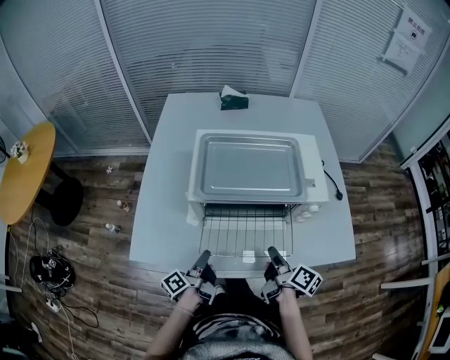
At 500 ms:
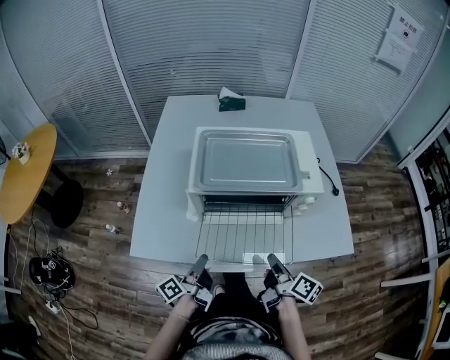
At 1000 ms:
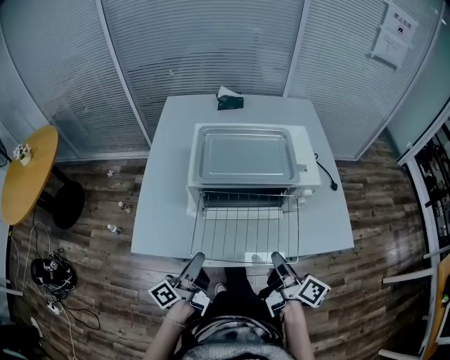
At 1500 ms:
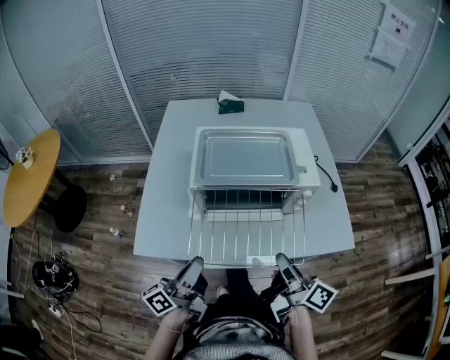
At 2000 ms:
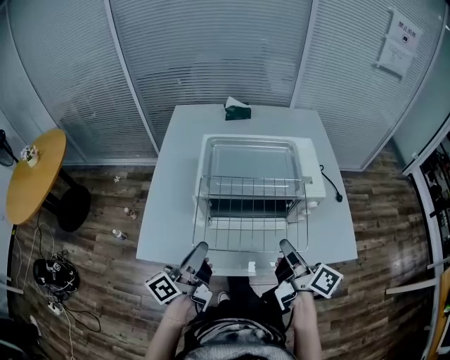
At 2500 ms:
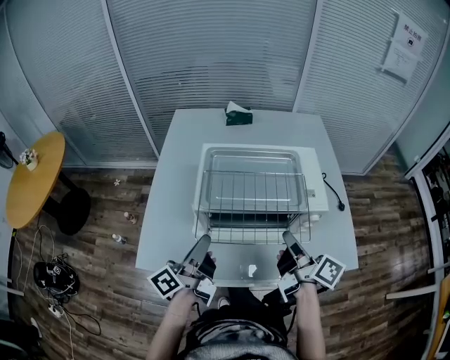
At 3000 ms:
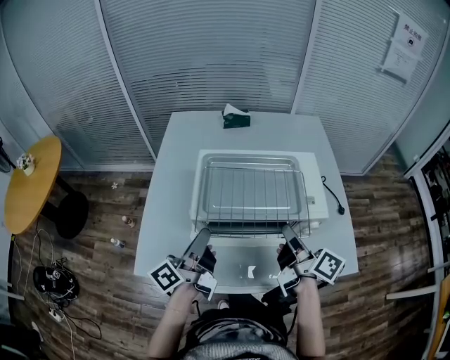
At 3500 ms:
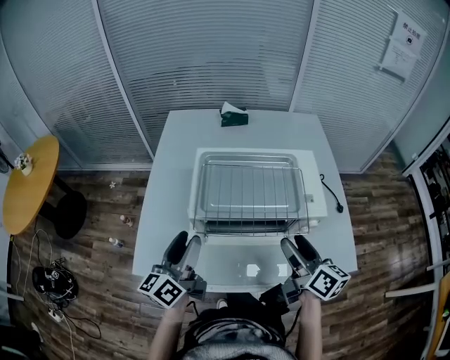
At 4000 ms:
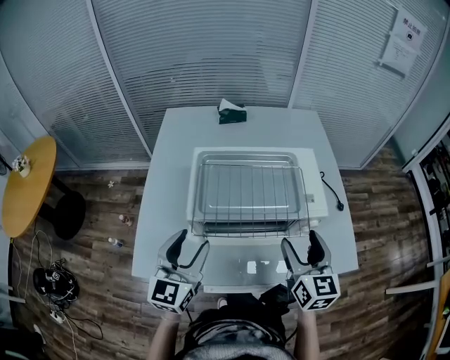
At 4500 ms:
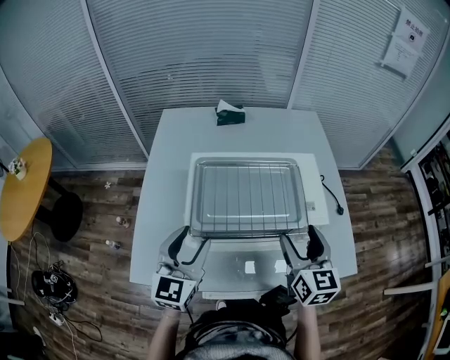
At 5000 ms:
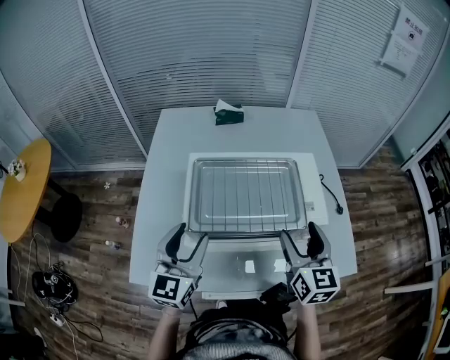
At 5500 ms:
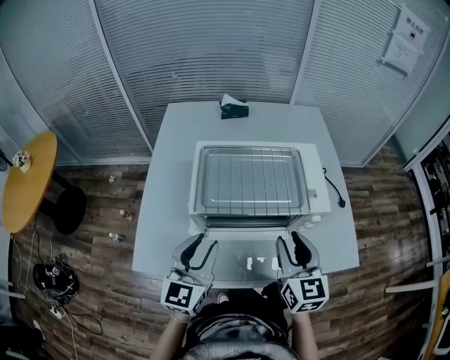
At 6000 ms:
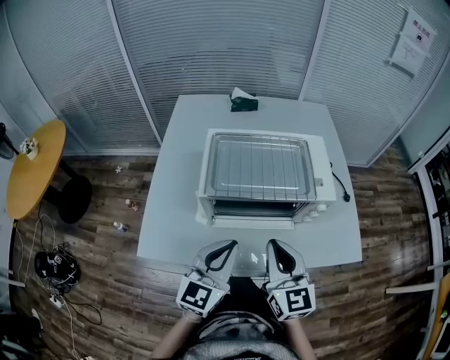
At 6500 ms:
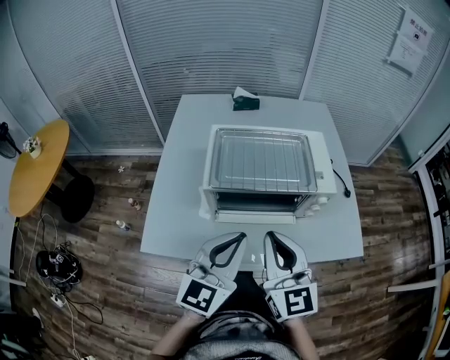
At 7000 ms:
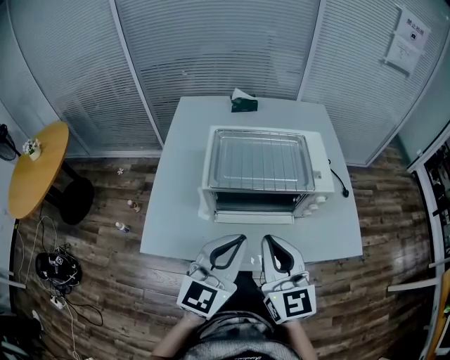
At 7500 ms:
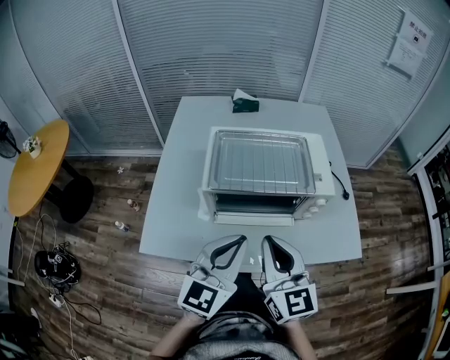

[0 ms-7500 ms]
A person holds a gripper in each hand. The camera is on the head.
0 ms to 2000 ms: Both grippers move upward, approximately 15 cm. The left gripper changes its angle by approximately 30 degrees.
2000 ms to 4000 ms: The two grippers go about 10 cm forward. The left gripper rotates around the line of its fingers by approximately 60 degrees, clockwise from behind, and opens up, while the right gripper rotates around the line of its fingers by roughly 50 degrees, counterclockwise from behind, and opens up.
4000 ms to 5500 ms: The right gripper closes up.
5500 ms to 7500 ms: The left gripper heads backward, to the right and upward, covering roughly 10 cm, and closes up, while the right gripper is displaced backward, to the left and upward by some 15 cm, and closes its fingers.

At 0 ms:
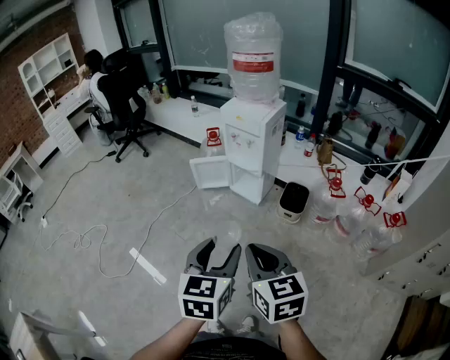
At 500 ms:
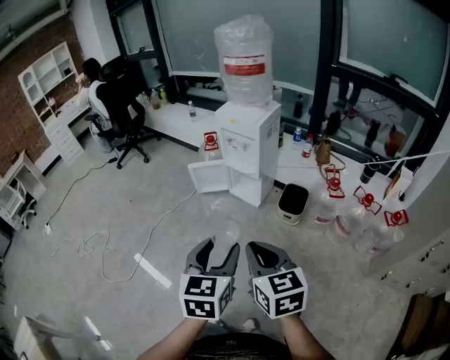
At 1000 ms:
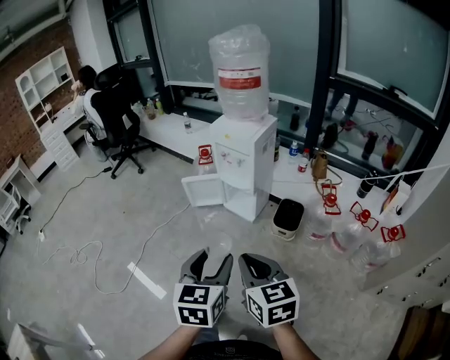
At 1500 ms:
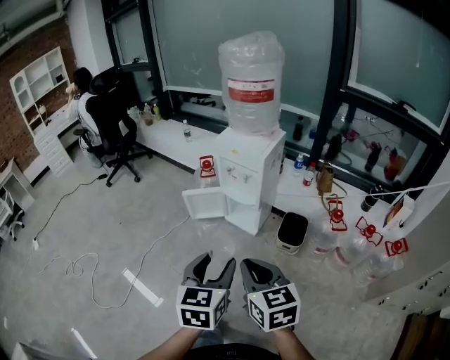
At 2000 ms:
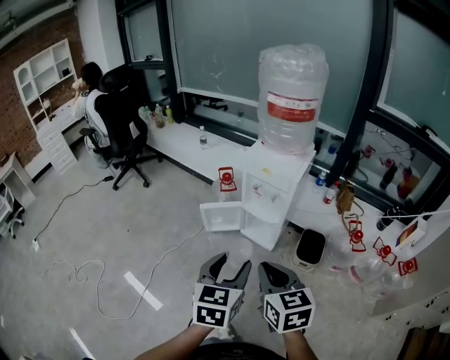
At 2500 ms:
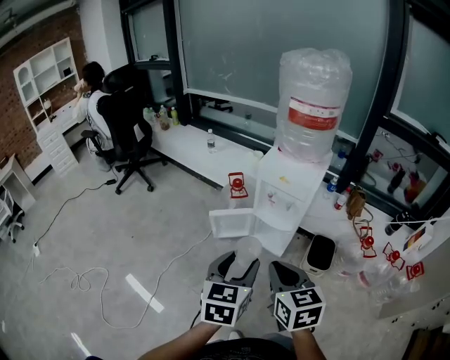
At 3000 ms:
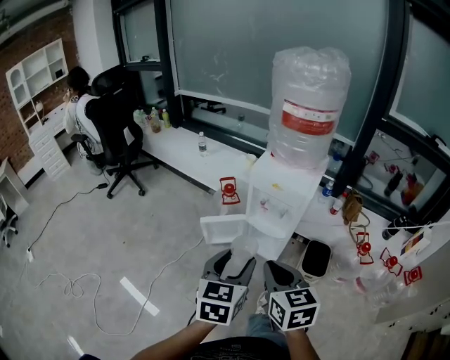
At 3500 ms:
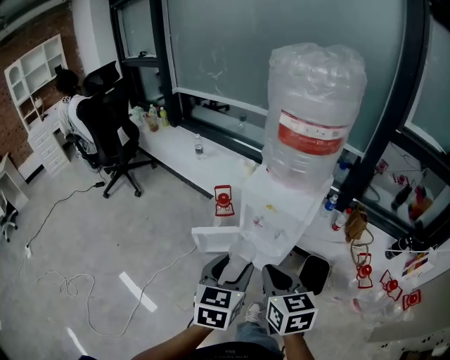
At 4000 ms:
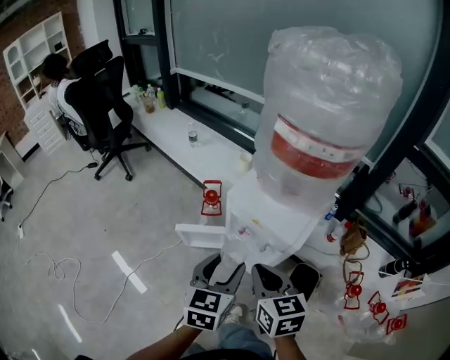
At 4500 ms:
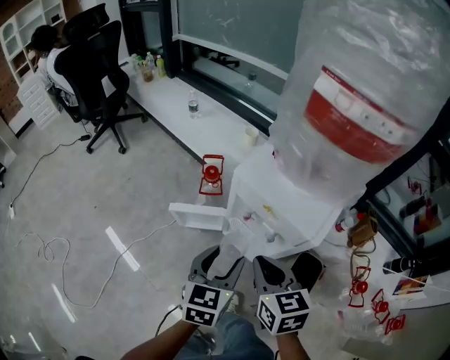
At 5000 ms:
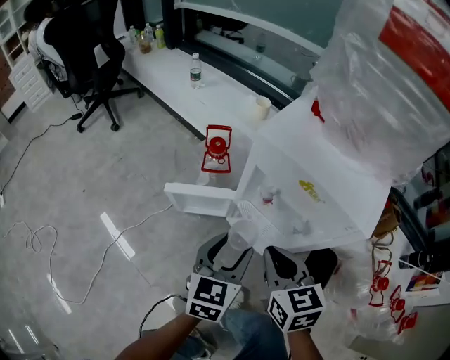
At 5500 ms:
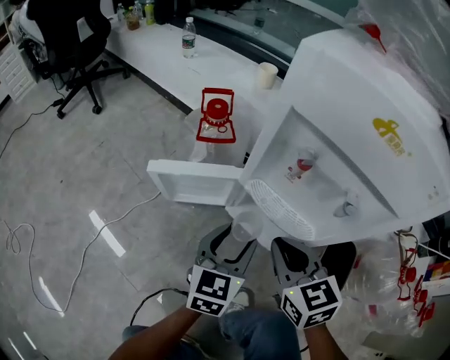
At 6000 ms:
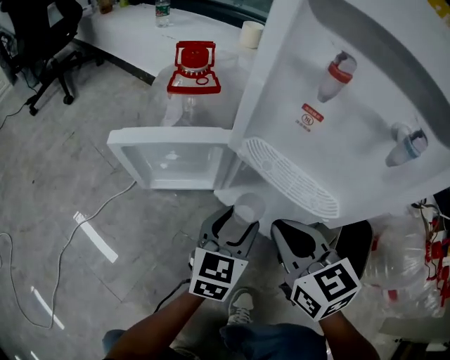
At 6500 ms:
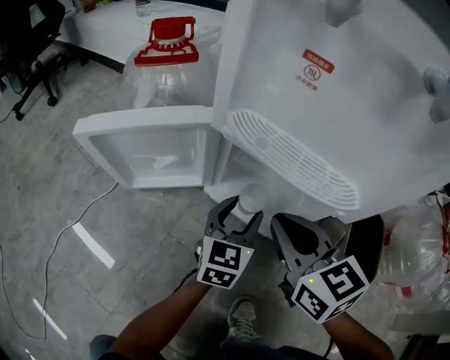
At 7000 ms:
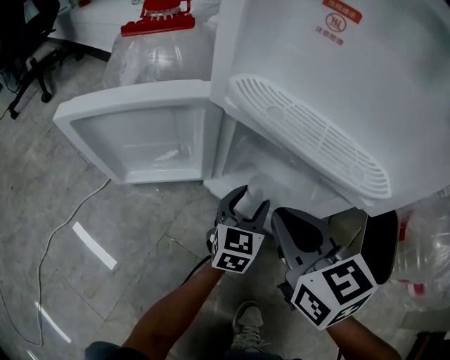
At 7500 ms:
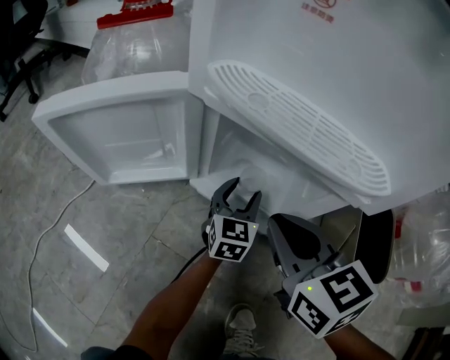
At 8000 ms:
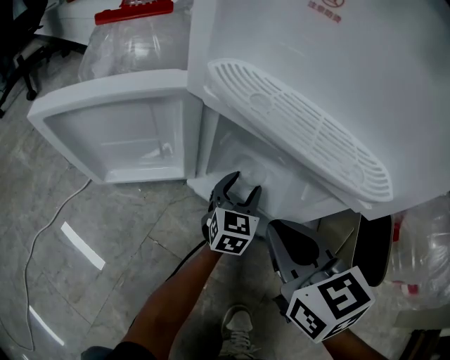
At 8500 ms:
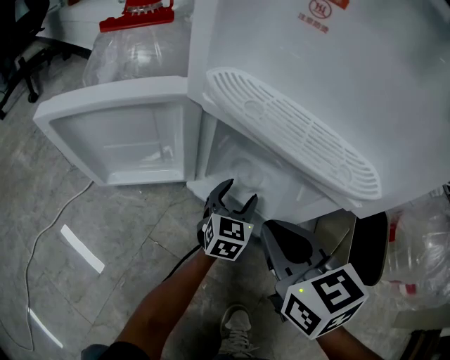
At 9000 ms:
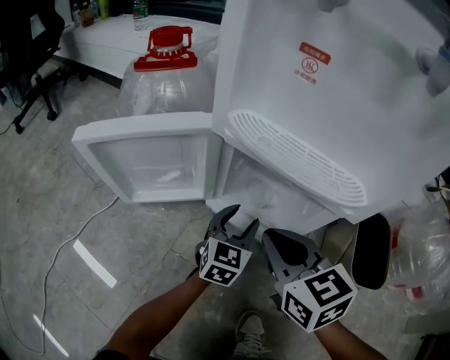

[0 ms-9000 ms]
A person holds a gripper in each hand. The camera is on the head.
0 ms to 2000 ms: The two grippers go about 25 cm forward.
2000 ms to 4500 ms: The two grippers go some 40 cm forward and downward.
4500 ms to 7000 ms: The grippers both shift downward by roughly 60 cm.

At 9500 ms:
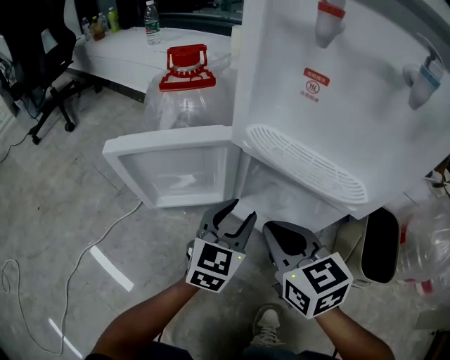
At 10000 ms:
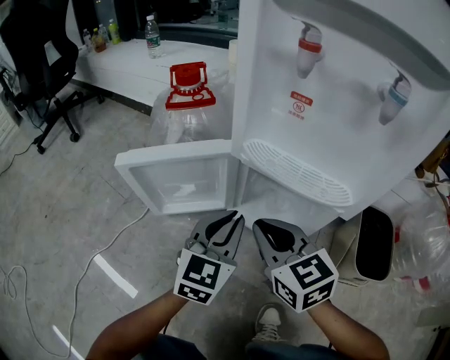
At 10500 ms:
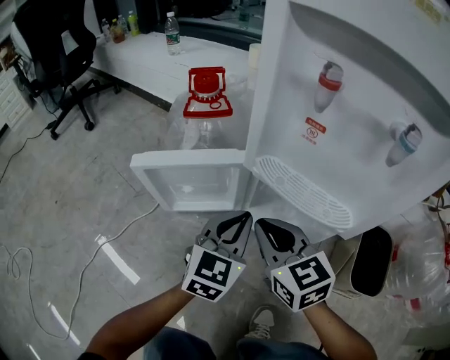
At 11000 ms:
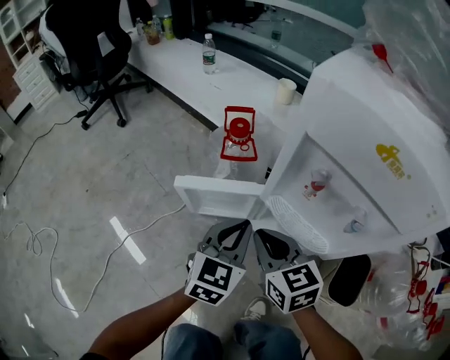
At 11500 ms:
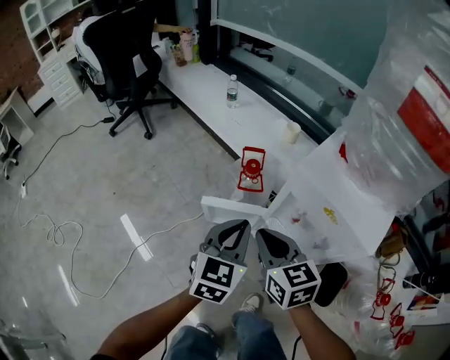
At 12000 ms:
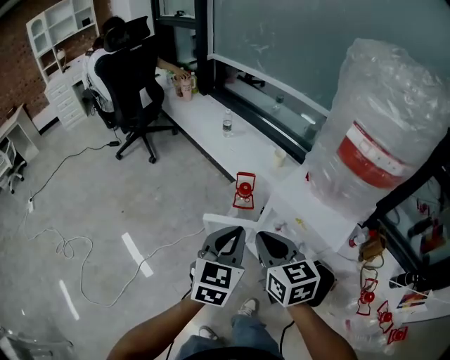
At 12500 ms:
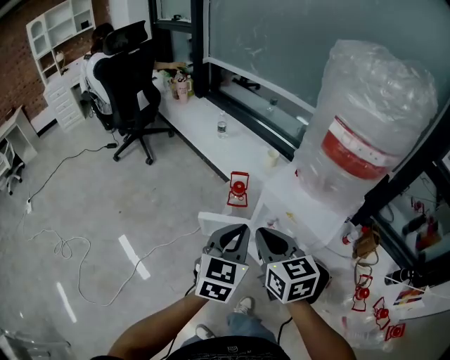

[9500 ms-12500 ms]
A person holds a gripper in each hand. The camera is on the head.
9500 ms to 11000 ms: The right gripper goes some 20 cm upward and to the left. Meanwhile the left gripper travels upward by some 25 cm, and closes.
11000 ms to 12500 ms: The grippers both shift upward by approximately 40 cm.

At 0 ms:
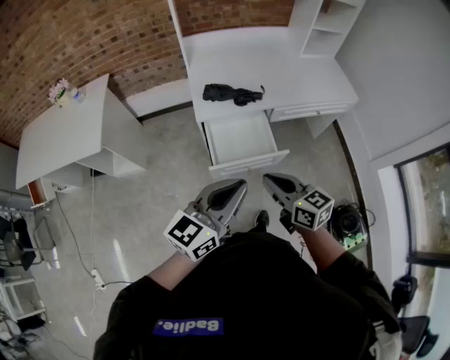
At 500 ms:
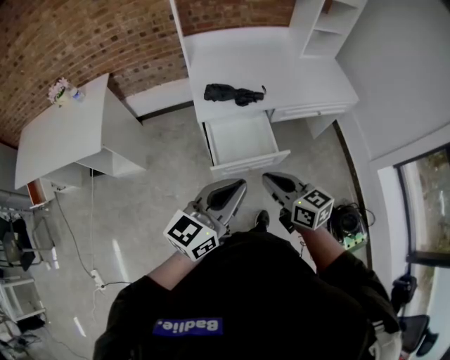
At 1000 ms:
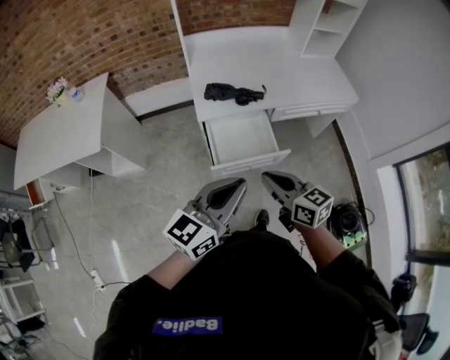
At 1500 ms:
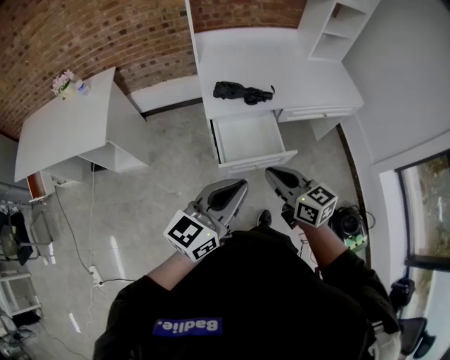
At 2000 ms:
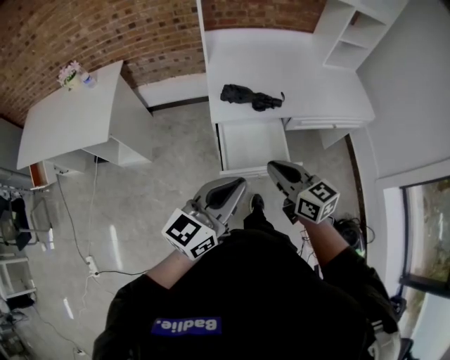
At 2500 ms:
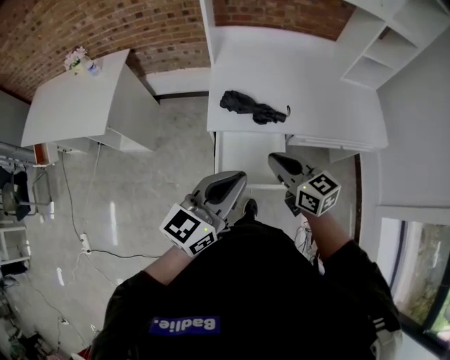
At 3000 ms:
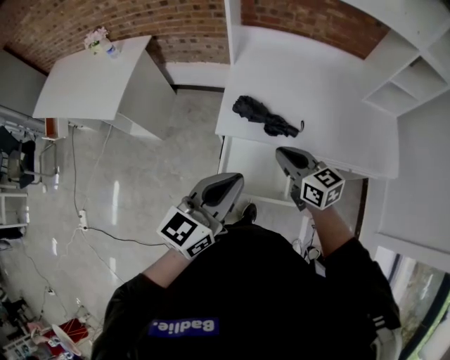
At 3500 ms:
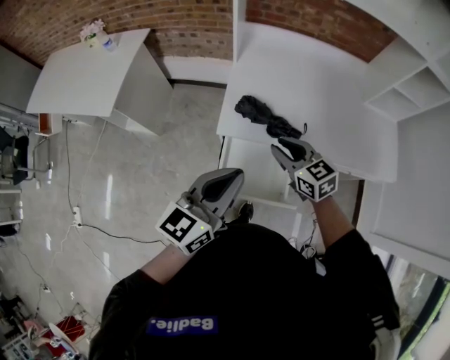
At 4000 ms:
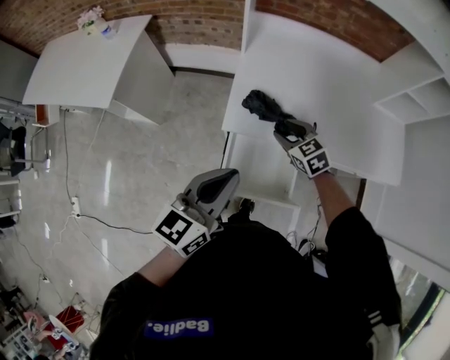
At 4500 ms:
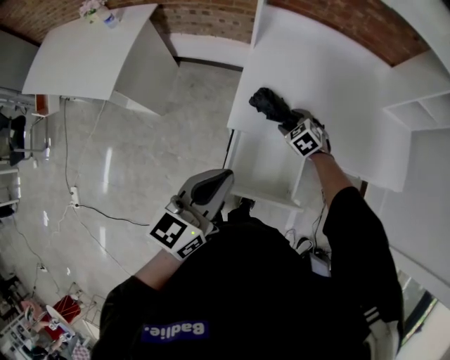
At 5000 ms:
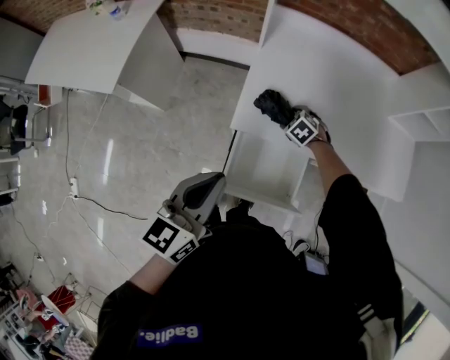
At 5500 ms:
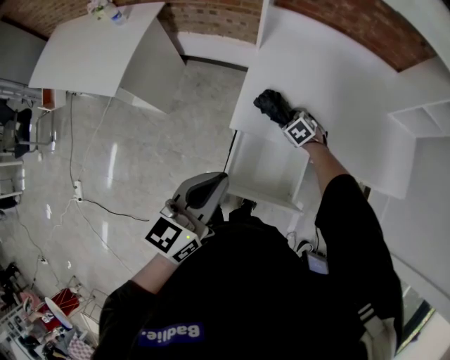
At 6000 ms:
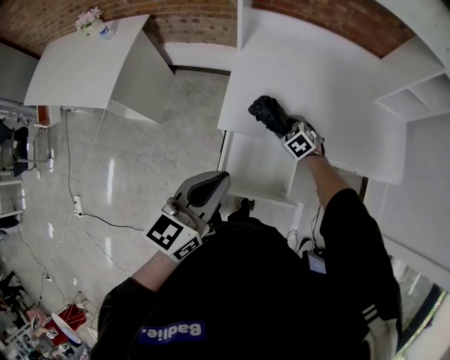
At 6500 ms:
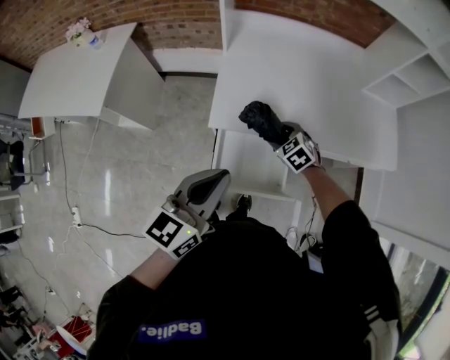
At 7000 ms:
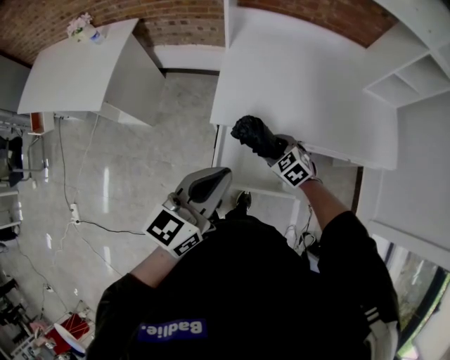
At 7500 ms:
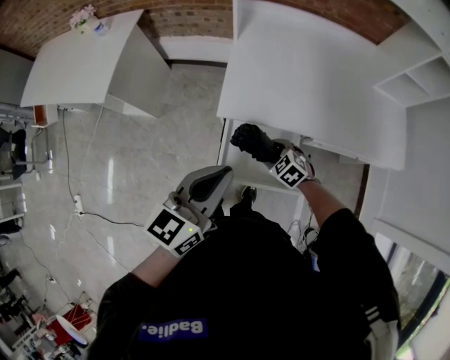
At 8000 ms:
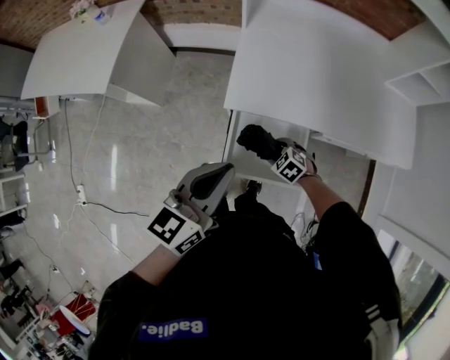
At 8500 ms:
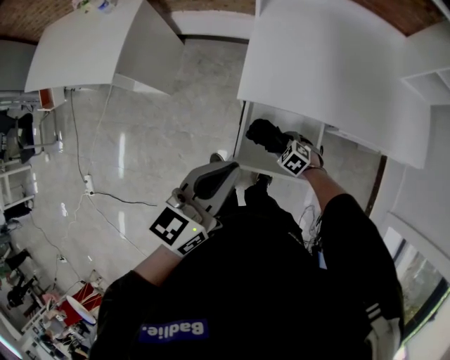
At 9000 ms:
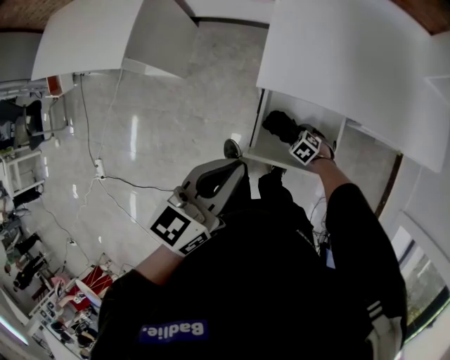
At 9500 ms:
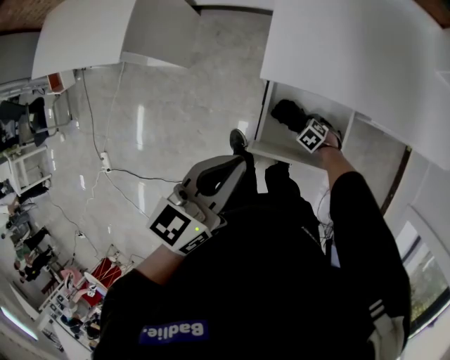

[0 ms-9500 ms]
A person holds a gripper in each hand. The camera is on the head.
0 ms to 2000 ms: The left gripper shifts by roughly 5 cm; the right gripper goes about 10 cm forward.
2000 ms to 4000 ms: The left gripper moves forward, about 20 cm, and turns by about 20 degrees. The right gripper moves forward and downward, about 35 cm, rotates about 40 degrees, and opens up.
4000 ms to 5500 ms: The right gripper heads downward, covering approximately 15 cm, and changes its angle by approximately 30 degrees.
5500 ms to 7500 ms: The right gripper is displaced backward by roughly 20 cm.
7500 ms to 9500 ms: The right gripper moves downward, about 25 cm, and swivels approximately 20 degrees. Meanwhile the left gripper shifts some 10 cm downward.
